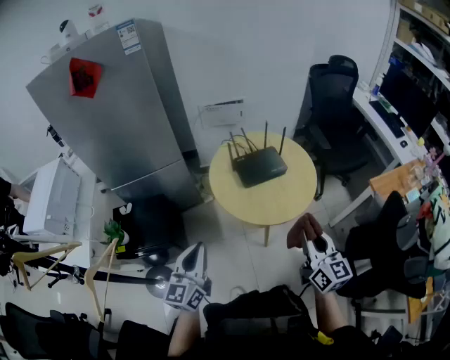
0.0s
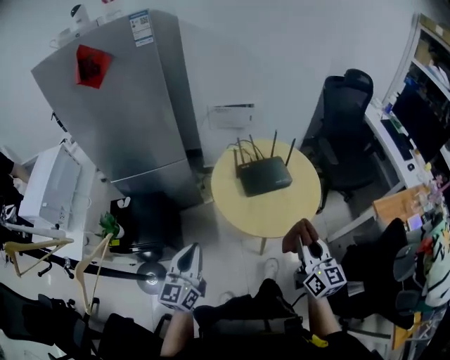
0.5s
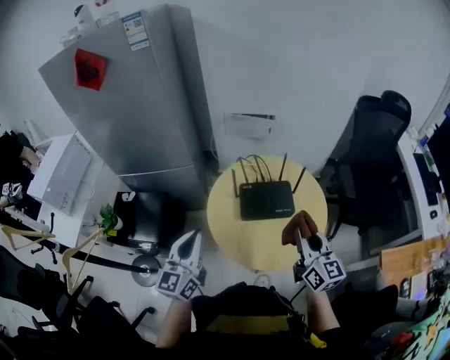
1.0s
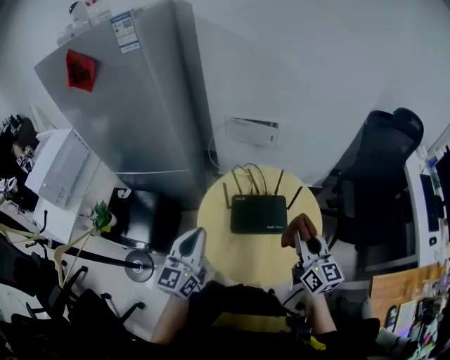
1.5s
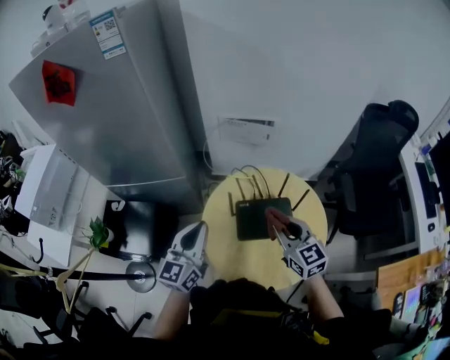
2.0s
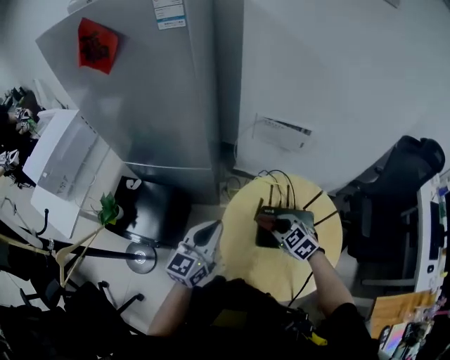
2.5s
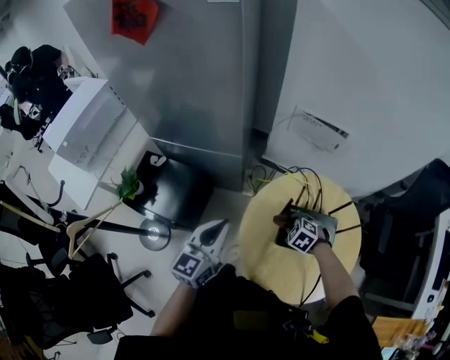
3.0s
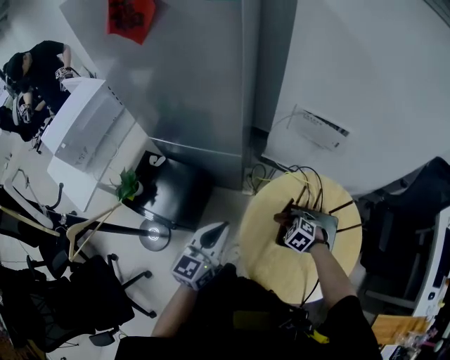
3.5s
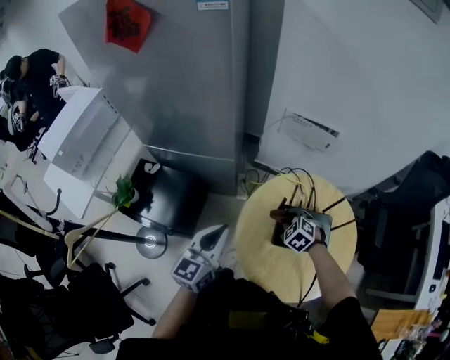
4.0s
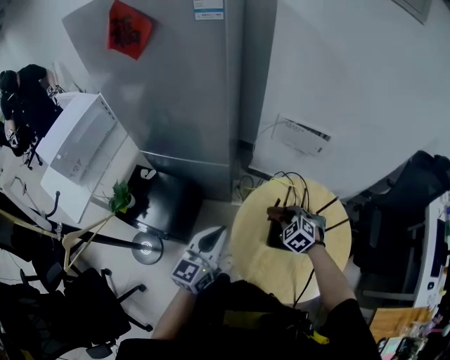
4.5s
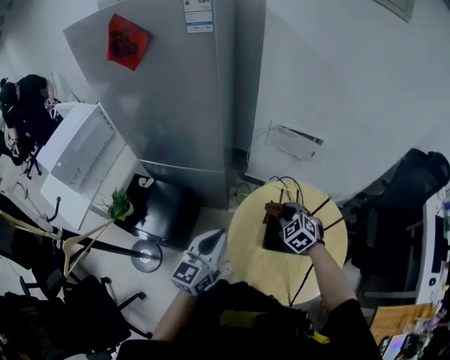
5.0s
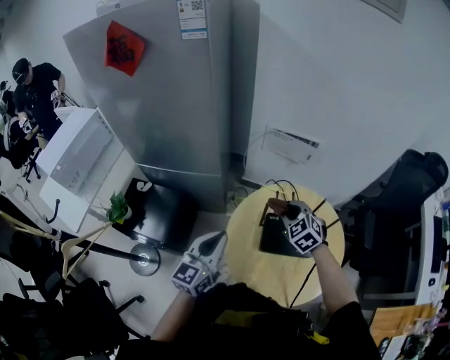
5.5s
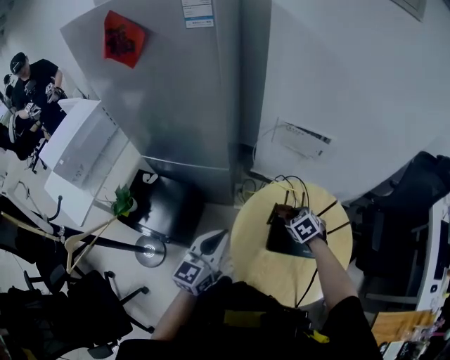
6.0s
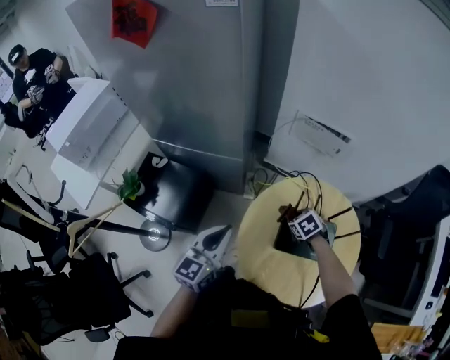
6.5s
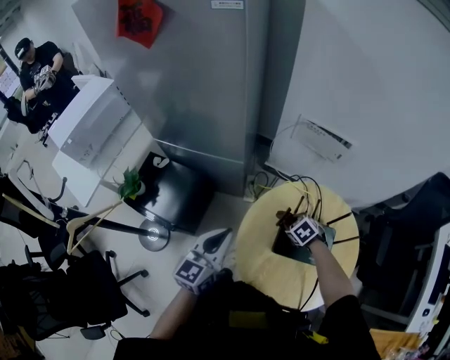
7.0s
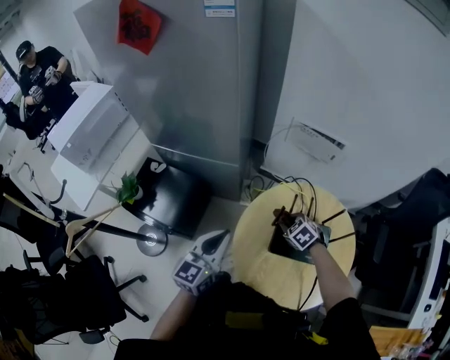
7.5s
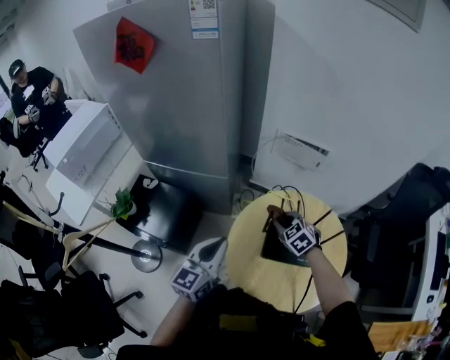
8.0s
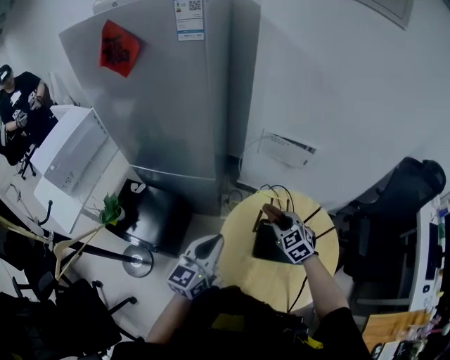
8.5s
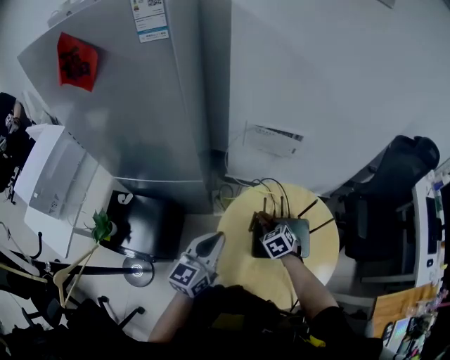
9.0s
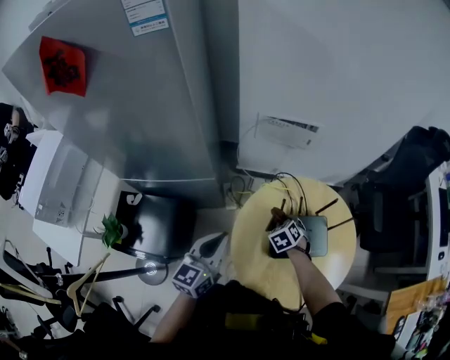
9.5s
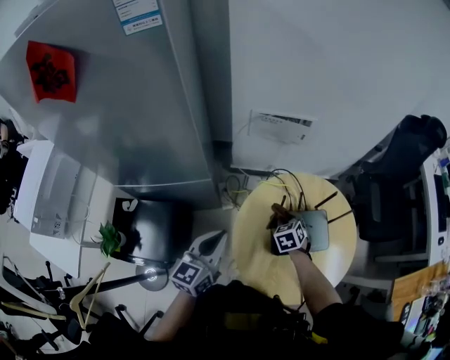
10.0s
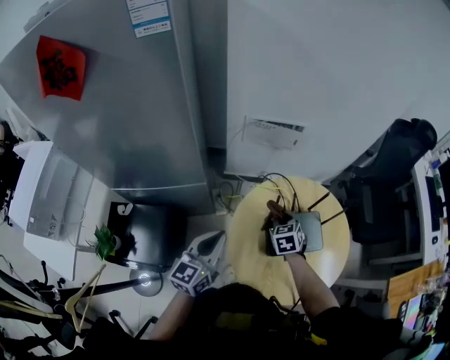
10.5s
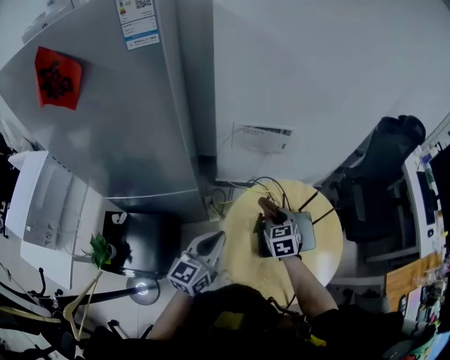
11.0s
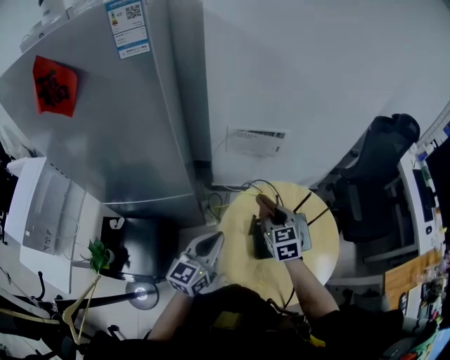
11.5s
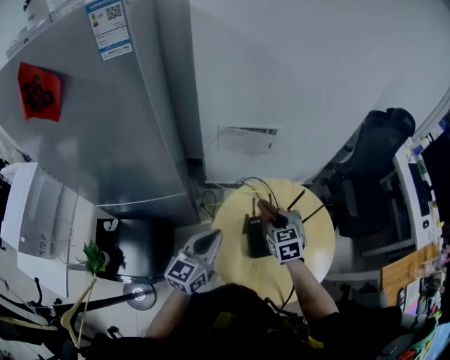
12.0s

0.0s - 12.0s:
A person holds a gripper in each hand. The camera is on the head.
0.0s - 2.0s: Both grippers travel together forward, about 35 cm. The right gripper turns by roughly 40 degrees.
2.0s - 4.0s: The right gripper goes roughly 25 cm downward, forward and to the left, and points its fingers roughly 40 degrees further downward; the left gripper heads to the left, covering about 10 cm.
4.0s - 6.0s: The right gripper travels upward and back again, approximately 15 cm each way.
6.0s - 8.0s: The right gripper goes downward and returns, some 10 cm each way.
8.0s - 10.0s: The left gripper ends up roughly 10 cm from where it was; the right gripper goes approximately 10 cm downward, and turns by some 40 degrees.
10.0s - 12.0s: The left gripper goes about 5 cm to the right. Meanwhile the right gripper goes approximately 15 cm upward, and turns by roughly 20 degrees.

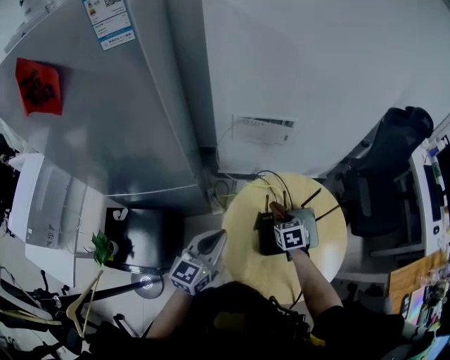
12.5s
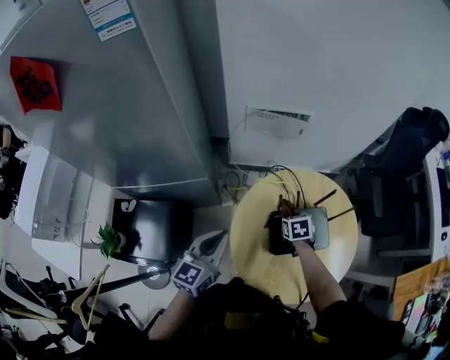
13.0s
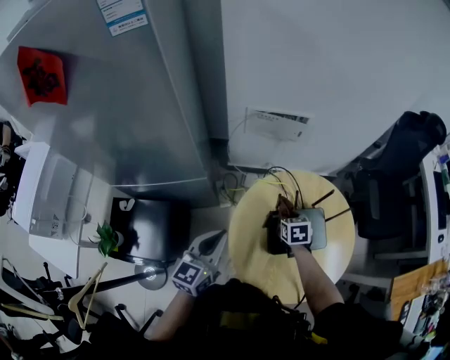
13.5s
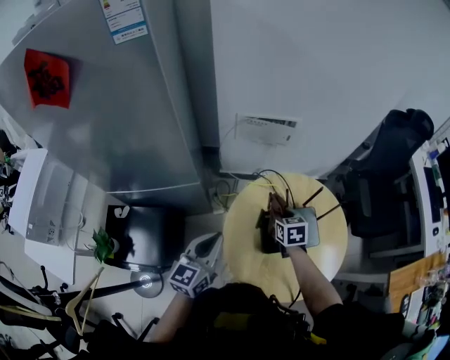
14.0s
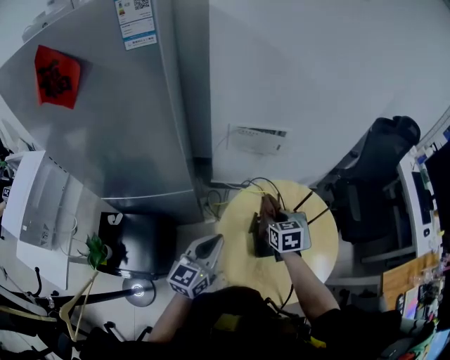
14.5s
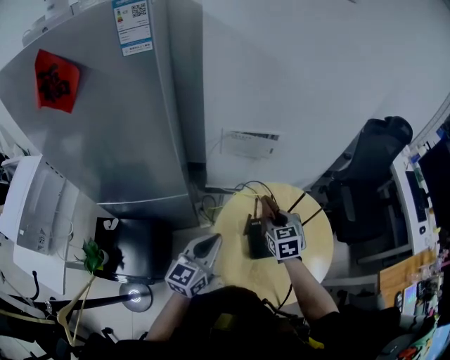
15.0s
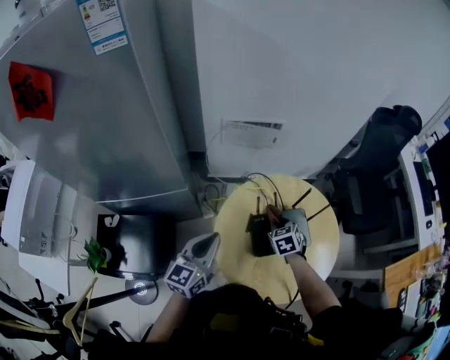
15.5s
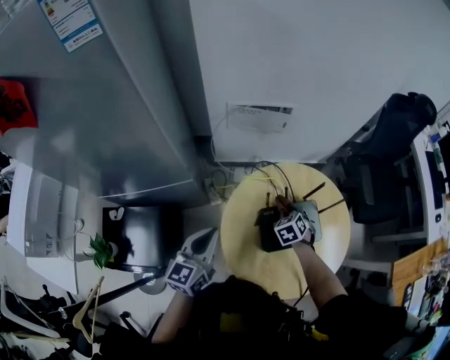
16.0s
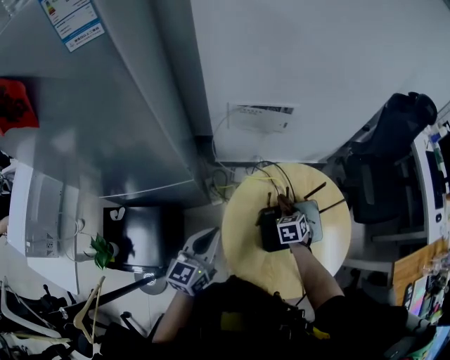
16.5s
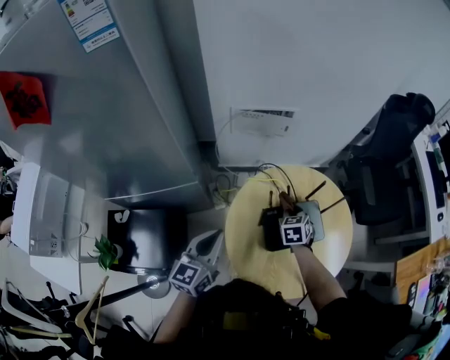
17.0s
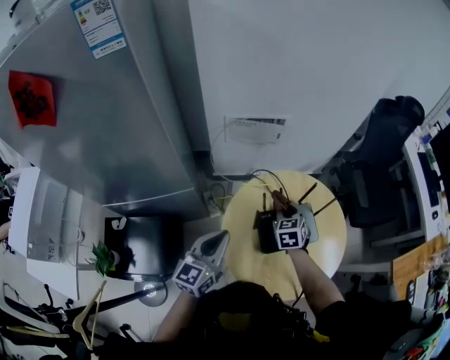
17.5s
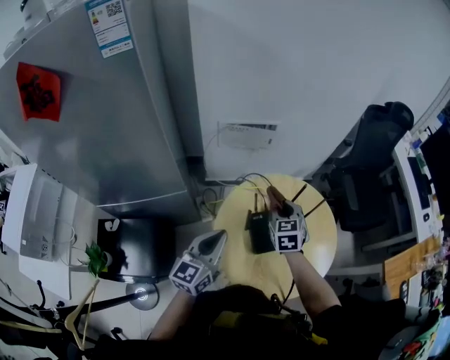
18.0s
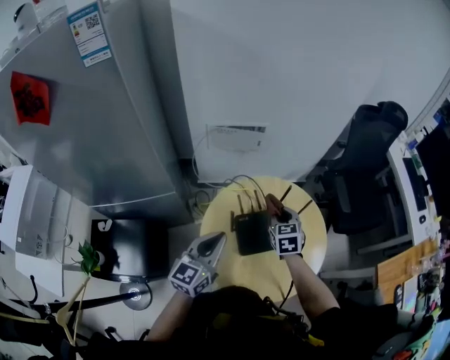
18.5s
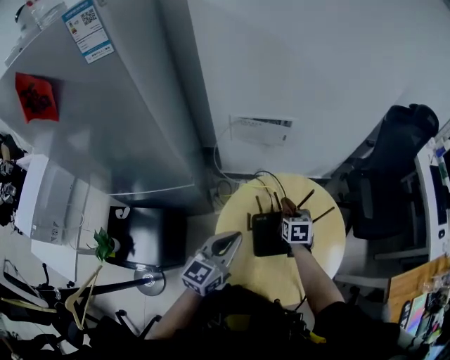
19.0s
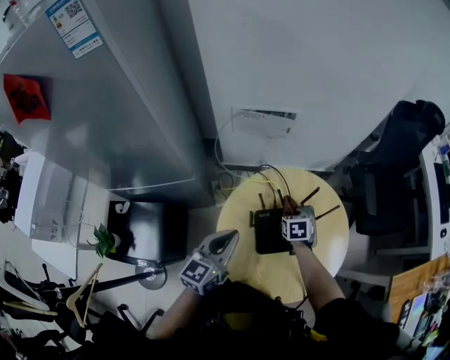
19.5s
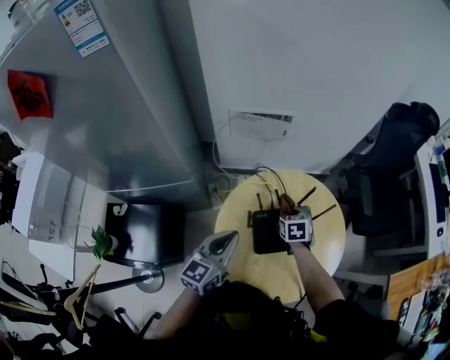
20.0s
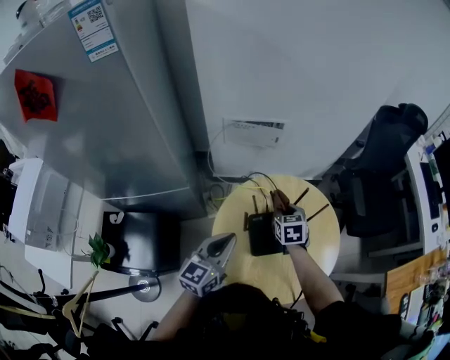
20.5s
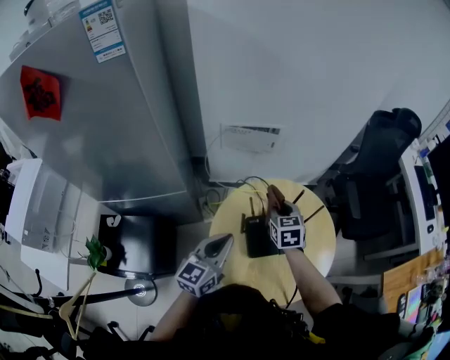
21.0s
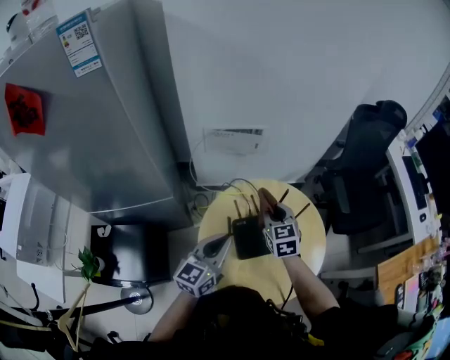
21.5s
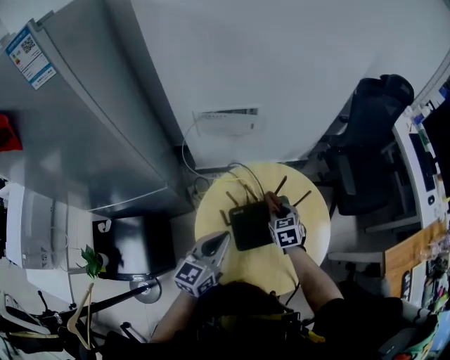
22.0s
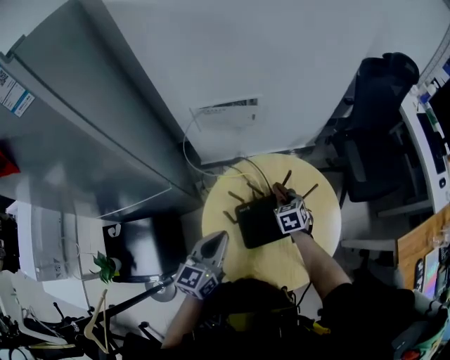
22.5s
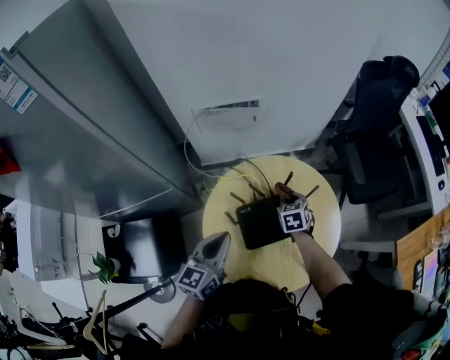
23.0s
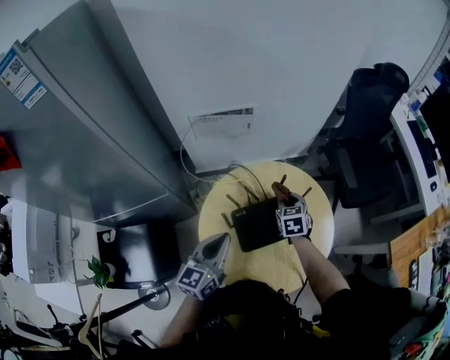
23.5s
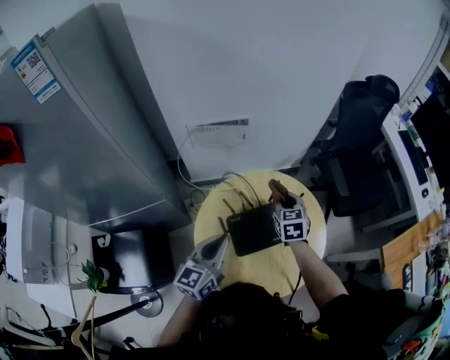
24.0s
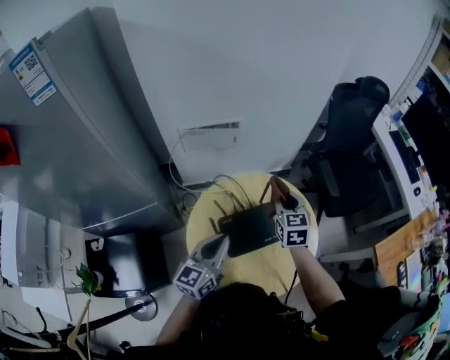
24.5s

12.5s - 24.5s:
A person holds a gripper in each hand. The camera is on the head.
12.5s - 14.5s: The right gripper travels upward by some 10 cm.
14.5s - 16.5s: The right gripper shifts approximately 15 cm downward and to the right, and swivels approximately 30 degrees; the left gripper changes place by approximately 5 cm.
16.5s - 18.5s: The right gripper moves upward, some 15 cm, and swivels about 20 degrees; the left gripper goes some 10 cm to the right.
18.5s - 20.5s: The right gripper travels downward and back again, about 15 cm each way.
20.5s - 22.5s: The right gripper heads downward and to the right, covering some 10 cm.
22.5s - 24.5s: The left gripper moves about 5 cm; the right gripper travels upward by about 20 cm, and changes its angle by roughly 30 degrees.

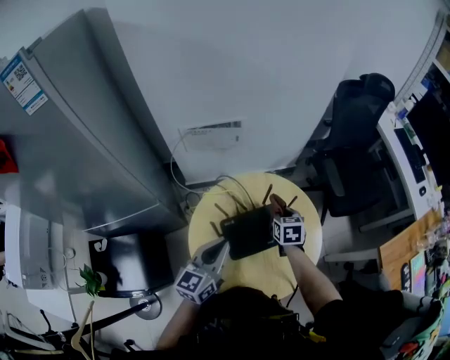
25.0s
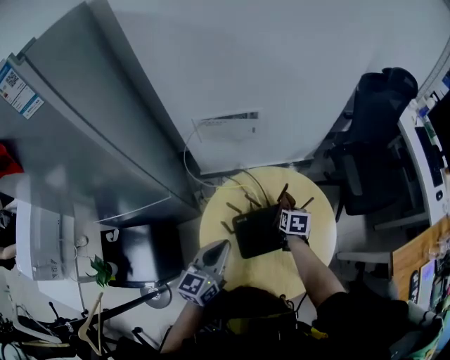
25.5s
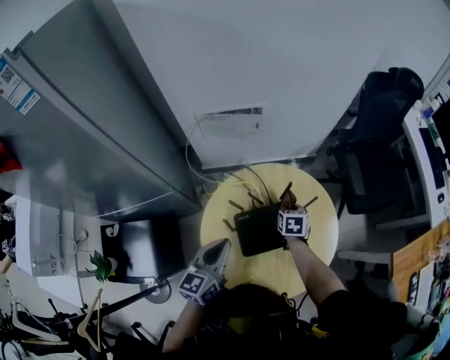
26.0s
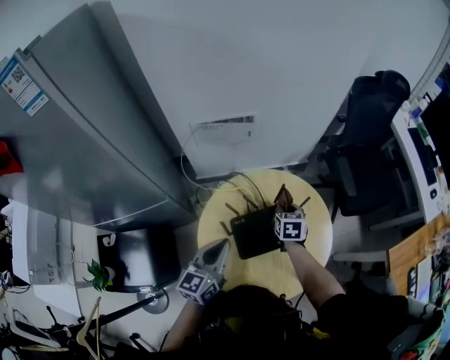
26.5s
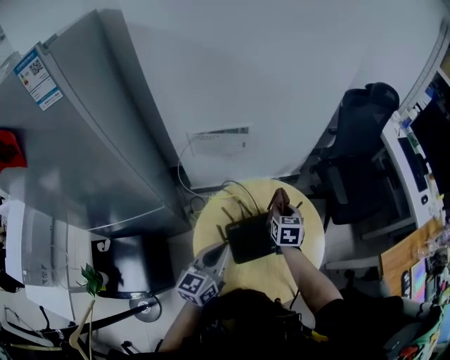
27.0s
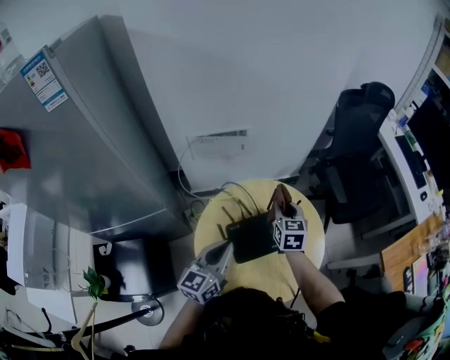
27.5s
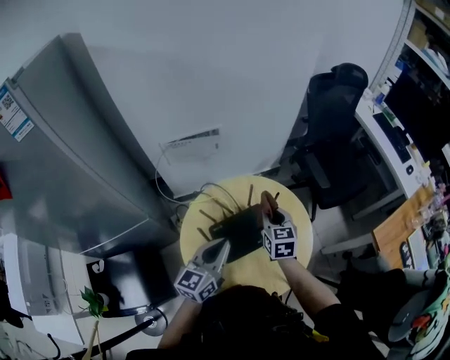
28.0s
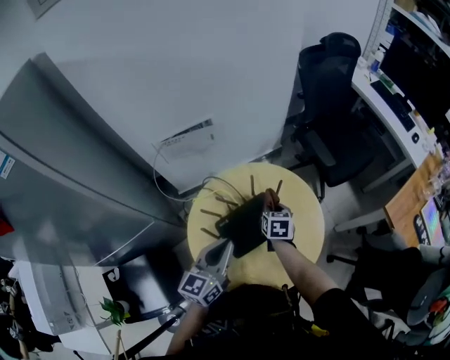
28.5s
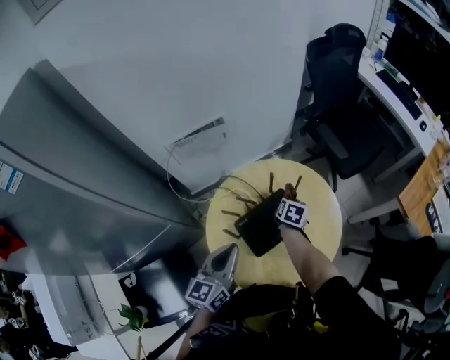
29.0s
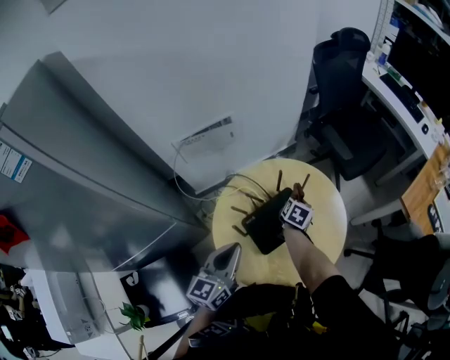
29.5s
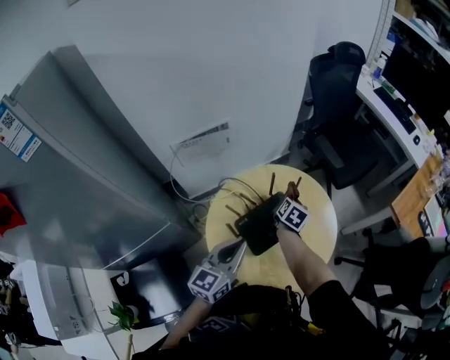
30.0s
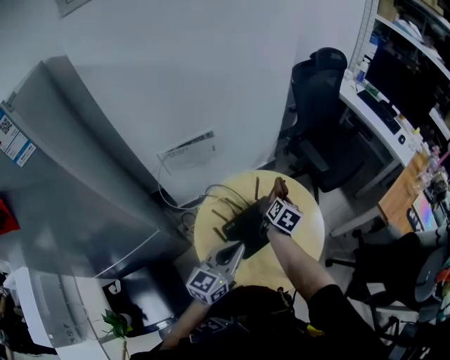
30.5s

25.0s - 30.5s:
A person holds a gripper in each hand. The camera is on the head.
25.0s - 27.0s: The right gripper ends up about 5 cm from where it was.
27.0s - 28.5s: The right gripper shifts roughly 10 cm downward.
28.5s - 30.5s: The right gripper is displaced upward by about 10 cm, and rotates approximately 30 degrees.
